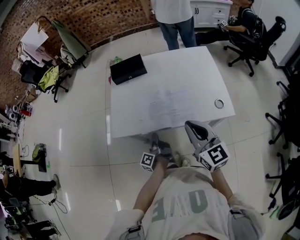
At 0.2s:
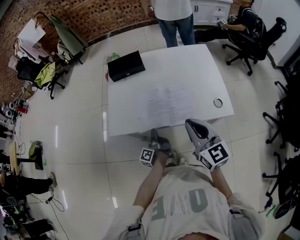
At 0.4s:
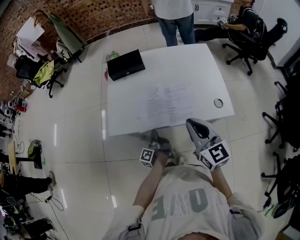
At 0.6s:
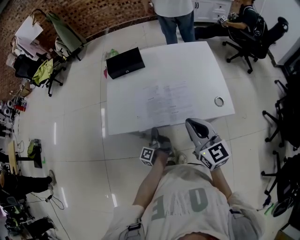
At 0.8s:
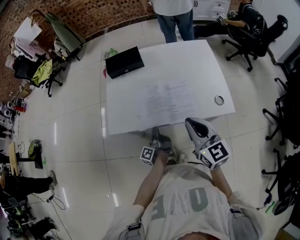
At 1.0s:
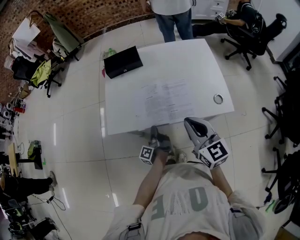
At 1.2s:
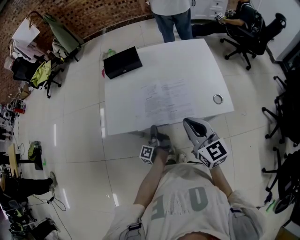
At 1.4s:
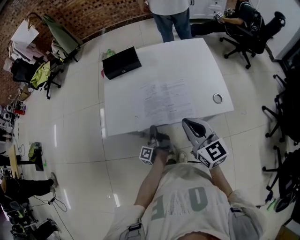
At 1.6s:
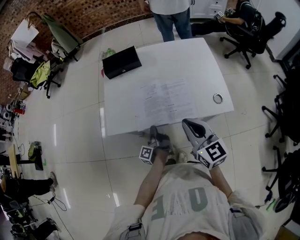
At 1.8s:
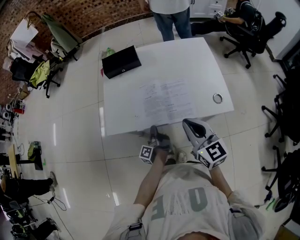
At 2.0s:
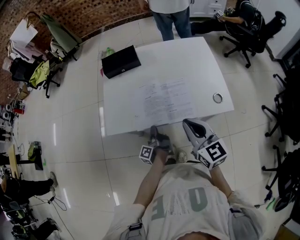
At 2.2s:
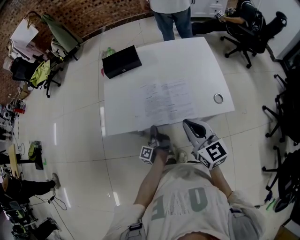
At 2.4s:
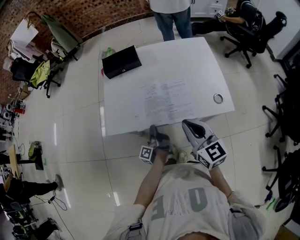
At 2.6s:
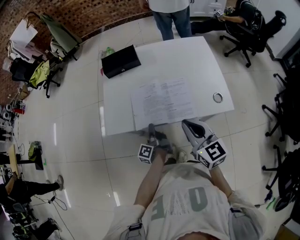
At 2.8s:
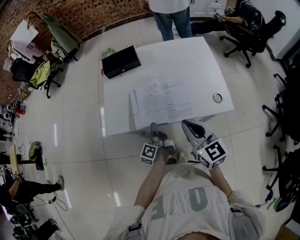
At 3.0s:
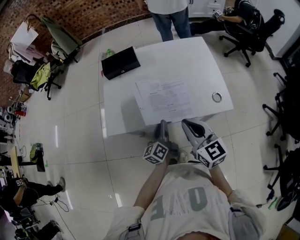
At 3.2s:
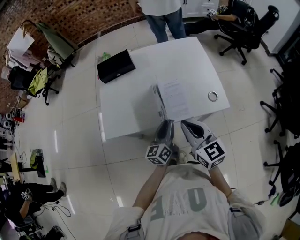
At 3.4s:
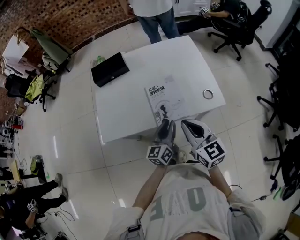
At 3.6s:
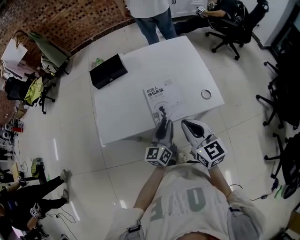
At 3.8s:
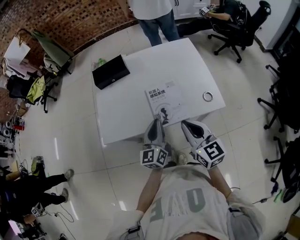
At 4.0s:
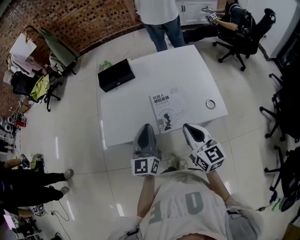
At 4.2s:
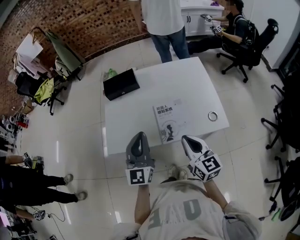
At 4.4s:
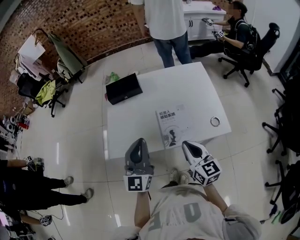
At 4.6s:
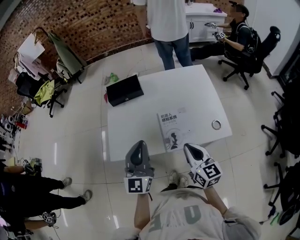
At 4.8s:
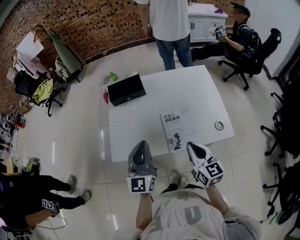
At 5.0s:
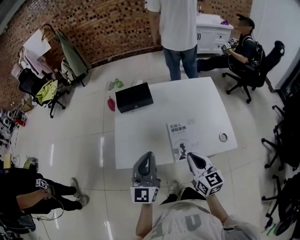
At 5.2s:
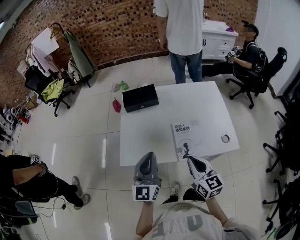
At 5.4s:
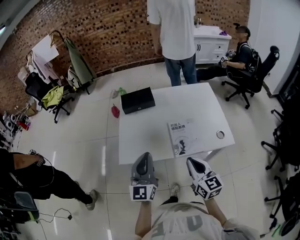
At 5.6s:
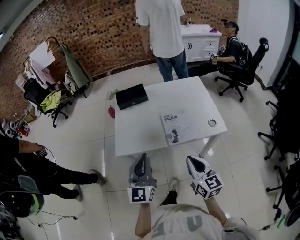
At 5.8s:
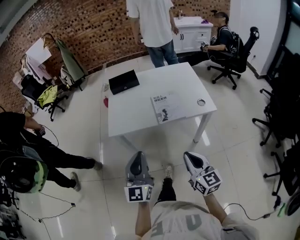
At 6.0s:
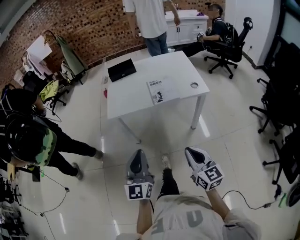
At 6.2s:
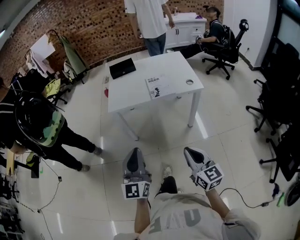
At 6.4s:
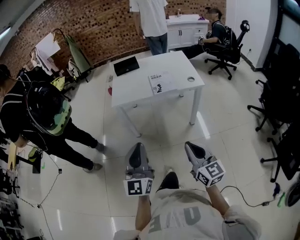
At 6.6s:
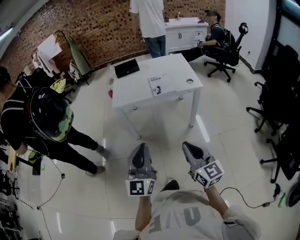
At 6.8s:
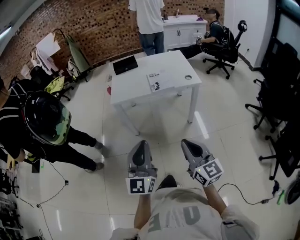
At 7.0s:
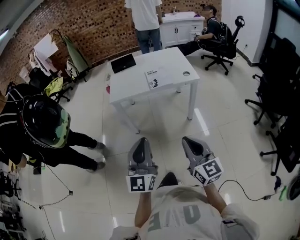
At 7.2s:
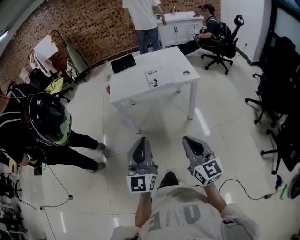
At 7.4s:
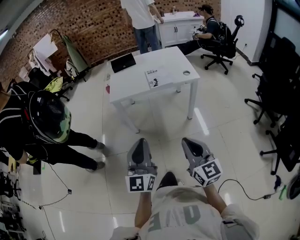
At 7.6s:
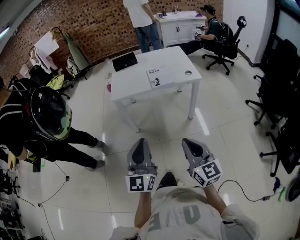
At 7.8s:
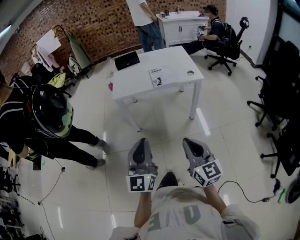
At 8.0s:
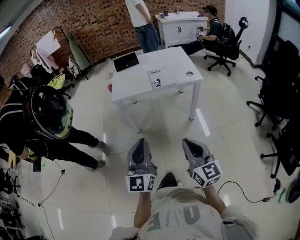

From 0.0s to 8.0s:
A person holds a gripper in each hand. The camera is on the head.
From 0.0s to 1.6s: The grippers stay close to where they were, moving slightly.
From 1.6s to 3.2s: The left gripper is displaced upward and to the right by roughly 15 cm, and rolls clockwise, seen from behind, by about 60 degrees.
From 3.2s to 4.8s: The left gripper is displaced upward and to the left by some 20 cm, swivels approximately 40 degrees, and closes up; the right gripper moves roughly 5 cm.
From 4.8s to 6.4s: The pair of grippers is taken backward, roughly 50 cm.
From 6.4s to 8.0s: The grippers move only a little.

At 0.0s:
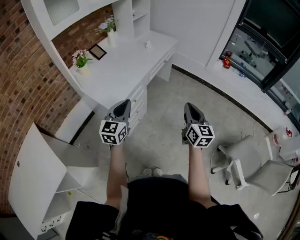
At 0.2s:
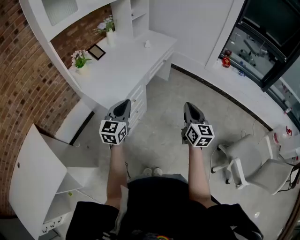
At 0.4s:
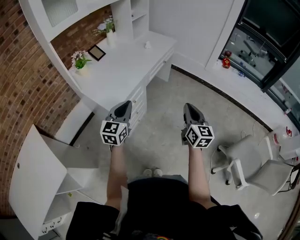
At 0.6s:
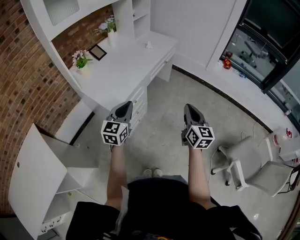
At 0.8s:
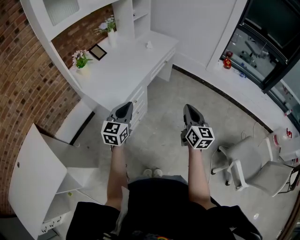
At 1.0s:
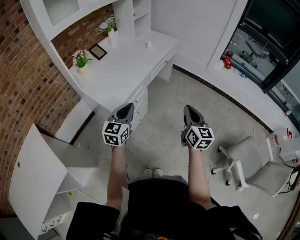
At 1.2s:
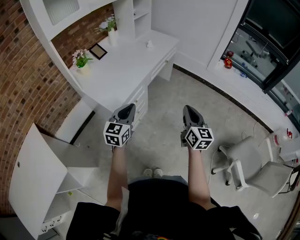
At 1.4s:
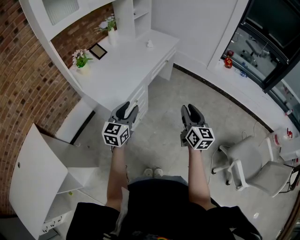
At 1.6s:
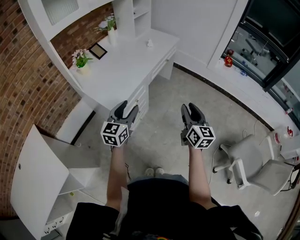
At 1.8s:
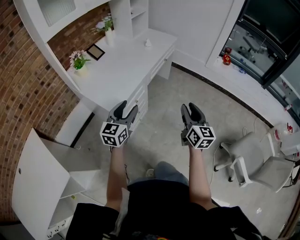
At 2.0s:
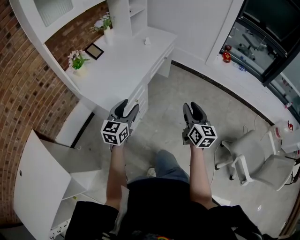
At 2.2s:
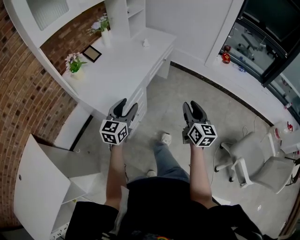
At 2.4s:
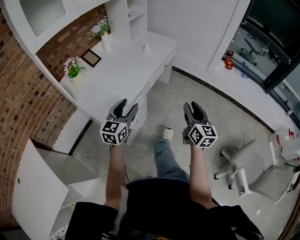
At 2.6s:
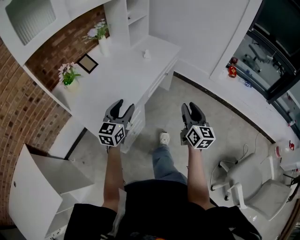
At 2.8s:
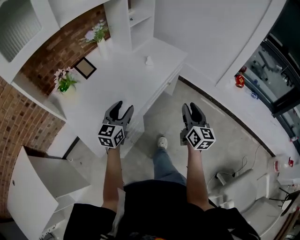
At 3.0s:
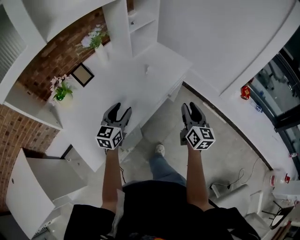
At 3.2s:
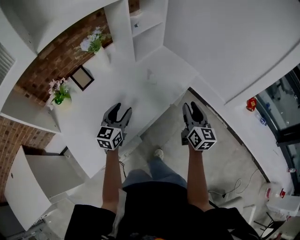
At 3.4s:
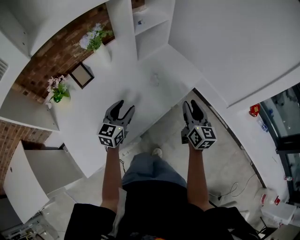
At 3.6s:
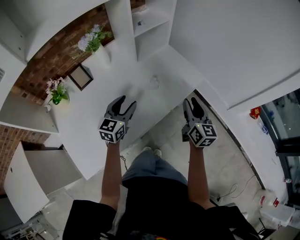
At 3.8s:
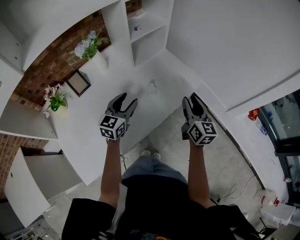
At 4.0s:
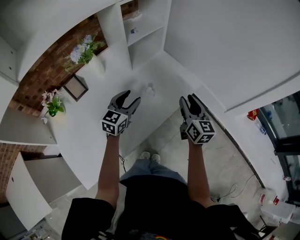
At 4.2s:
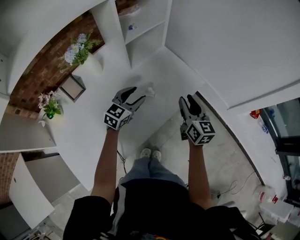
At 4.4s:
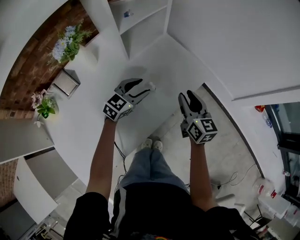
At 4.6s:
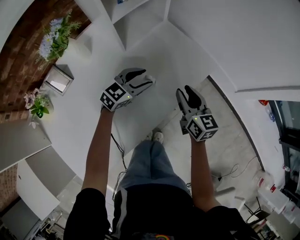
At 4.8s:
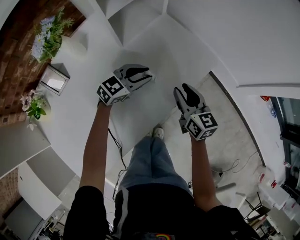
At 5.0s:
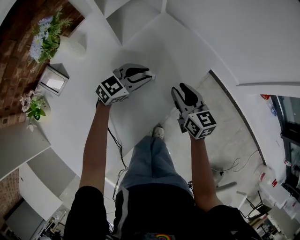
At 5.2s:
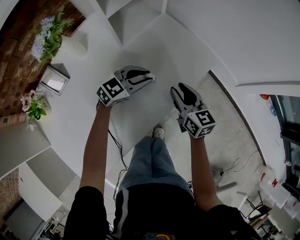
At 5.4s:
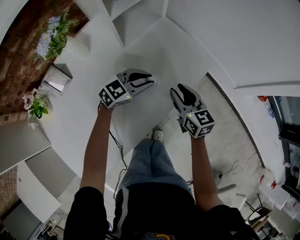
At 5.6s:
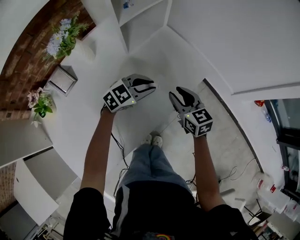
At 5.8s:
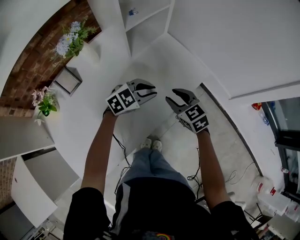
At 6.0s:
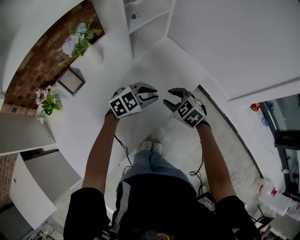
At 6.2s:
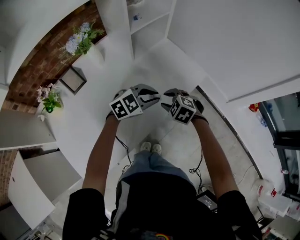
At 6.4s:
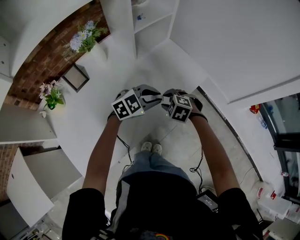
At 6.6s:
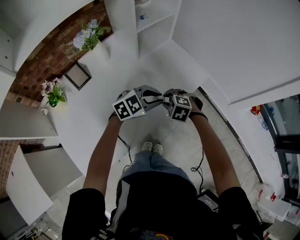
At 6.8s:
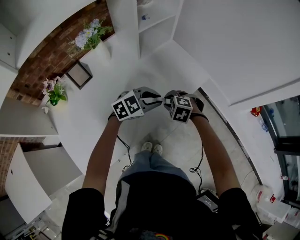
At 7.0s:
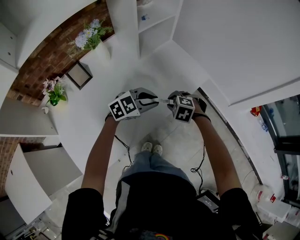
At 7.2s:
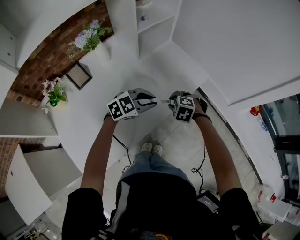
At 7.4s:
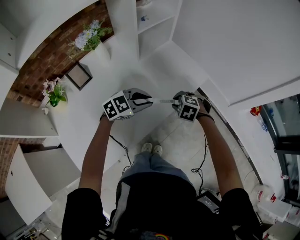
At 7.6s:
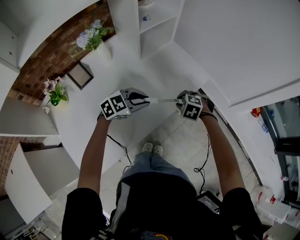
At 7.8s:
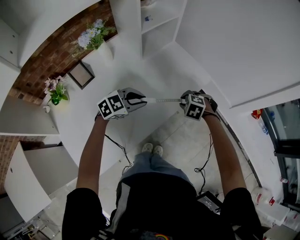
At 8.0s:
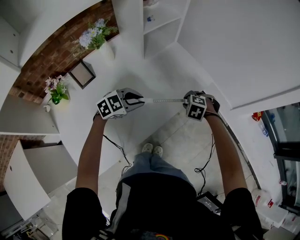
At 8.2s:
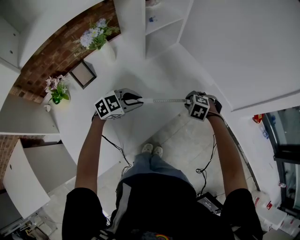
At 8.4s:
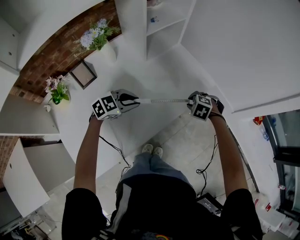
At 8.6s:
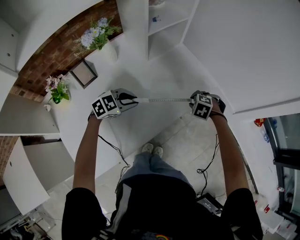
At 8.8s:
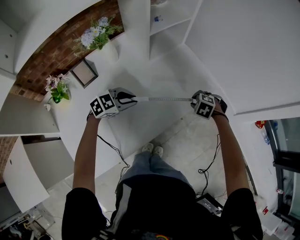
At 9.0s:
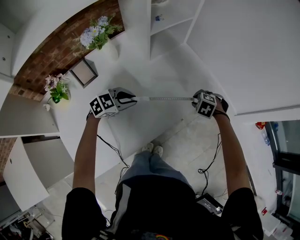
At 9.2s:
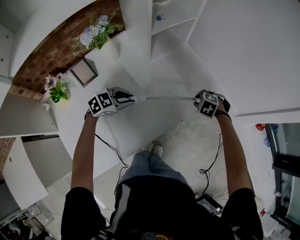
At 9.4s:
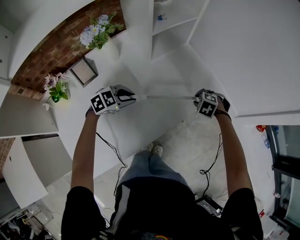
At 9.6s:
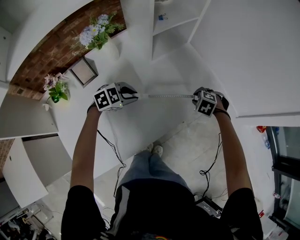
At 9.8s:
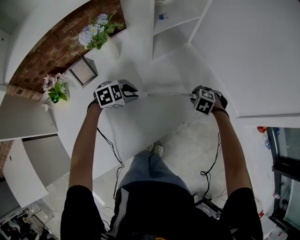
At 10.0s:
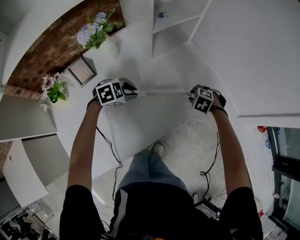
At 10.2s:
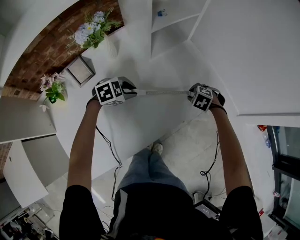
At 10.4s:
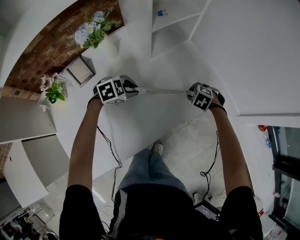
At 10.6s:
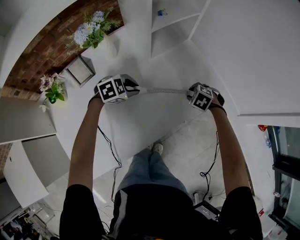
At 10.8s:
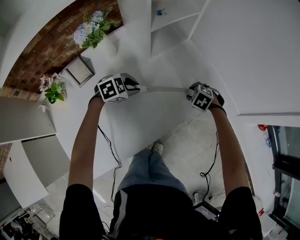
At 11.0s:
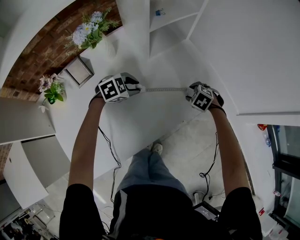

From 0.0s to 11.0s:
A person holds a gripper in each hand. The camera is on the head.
From 0.0s to 1.6s: The left gripper opens its fingers; the right gripper opens up.
From 1.6s to 3.2s: The pair of grippers is taken forward, some 50 cm.
From 3.2s to 4.8s: The grippers both shift forward and downward by approximately 25 cm. The left gripper rotates roughly 40 degrees.
From 4.8s to 6.2s: The left gripper shifts some 15 cm backward and upward, while the right gripper shifts approximately 10 cm backward and to the left, and points its fingers some 40 degrees further downward.
From 6.2s to 7.8s: The right gripper travels to the right by some 5 cm, while the left gripper goes some 5 cm to the left.
From 7.8s to 9.4s: The left gripper changes place by approximately 10 cm. Meanwhile the right gripper ends up about 10 cm from where it was.
From 9.4s to 11.0s: The left gripper shifts by roughly 5 cm, while the right gripper shifts by roughly 5 cm.

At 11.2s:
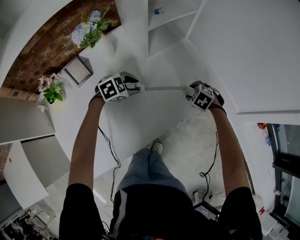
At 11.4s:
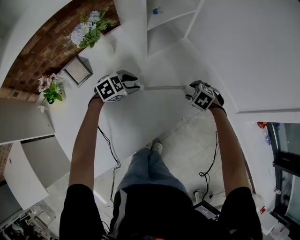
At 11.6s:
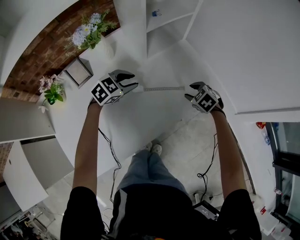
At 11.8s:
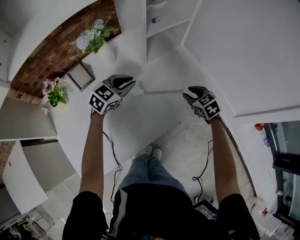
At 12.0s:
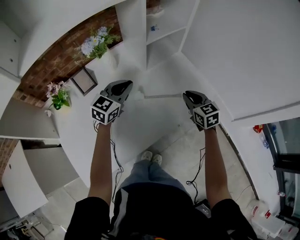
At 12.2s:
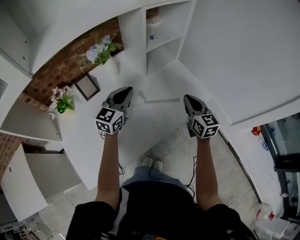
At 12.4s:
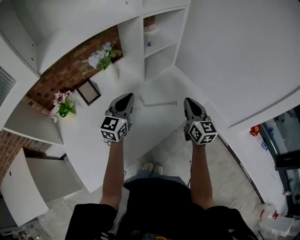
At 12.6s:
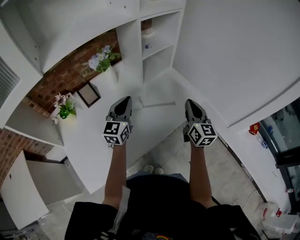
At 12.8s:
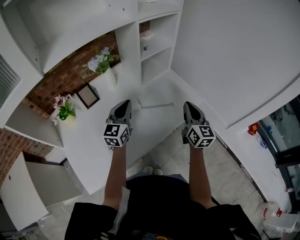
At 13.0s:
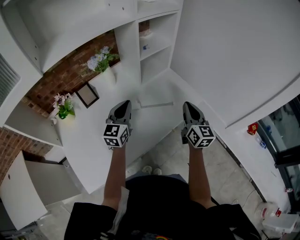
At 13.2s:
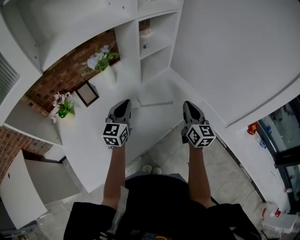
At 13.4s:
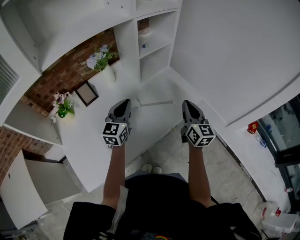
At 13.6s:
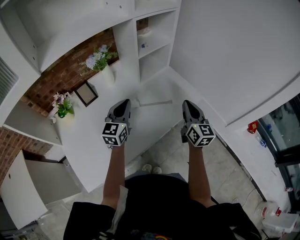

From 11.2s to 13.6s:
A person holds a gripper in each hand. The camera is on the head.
From 11.2s to 12.4s: Both grippers travel together upward, about 25 cm. The right gripper tilts its fingers approximately 70 degrees upward, and closes up. The left gripper tilts its fingers roughly 50 degrees upward, and closes its fingers.
From 12.4s to 13.6s: The grippers stay close to where they were, moving slightly.

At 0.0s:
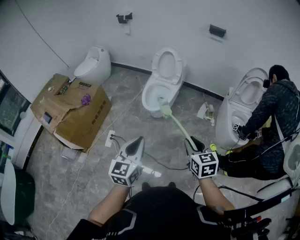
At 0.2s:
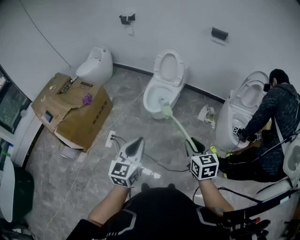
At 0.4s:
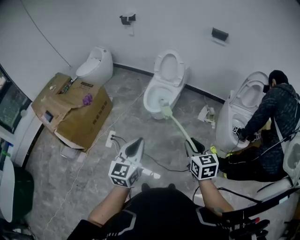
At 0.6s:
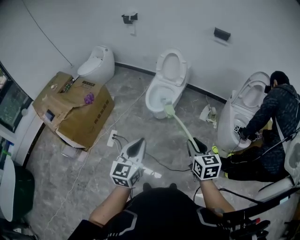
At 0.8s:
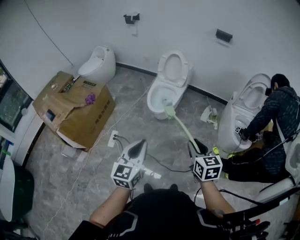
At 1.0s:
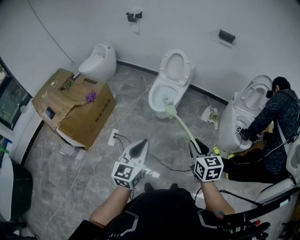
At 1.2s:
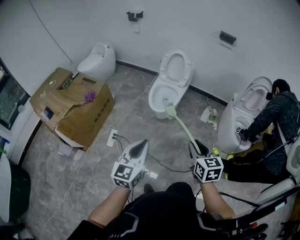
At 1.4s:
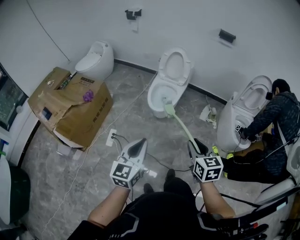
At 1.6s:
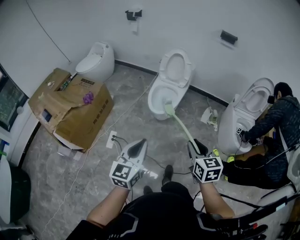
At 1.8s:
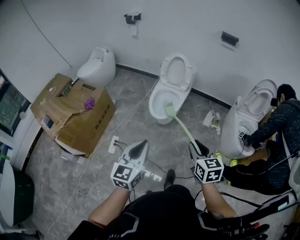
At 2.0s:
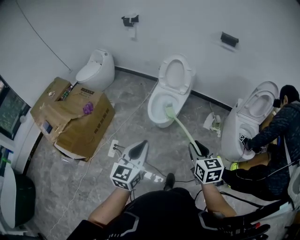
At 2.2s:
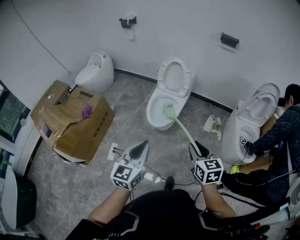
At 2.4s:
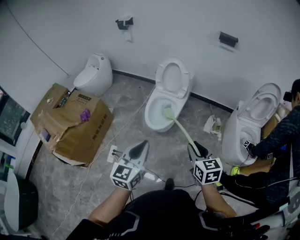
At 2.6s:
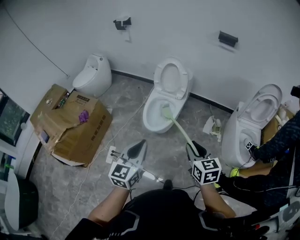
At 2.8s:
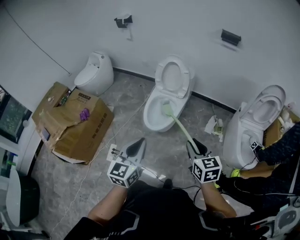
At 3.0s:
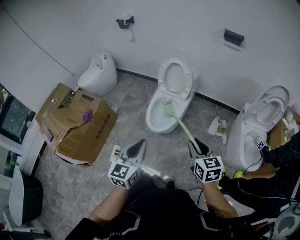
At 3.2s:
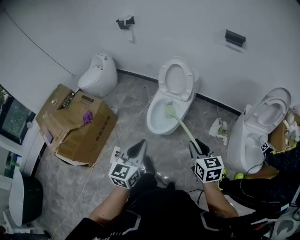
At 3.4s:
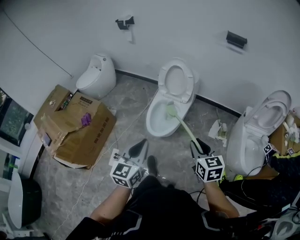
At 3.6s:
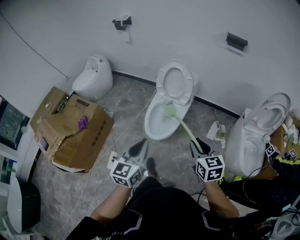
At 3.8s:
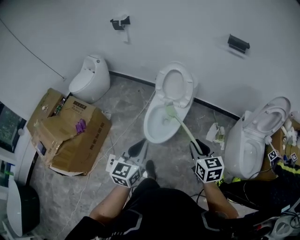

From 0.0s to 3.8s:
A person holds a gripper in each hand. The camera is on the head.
From 0.0s to 1.2s: The grippers both shift to the left by some 5 cm.
From 1.2s to 2.6s: Both grippers move forward, some 20 cm.
From 2.6s to 3.8s: The two grippers go roughly 15 cm forward.
